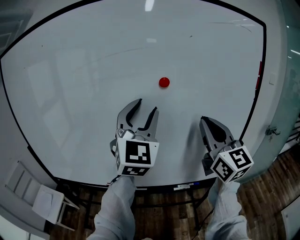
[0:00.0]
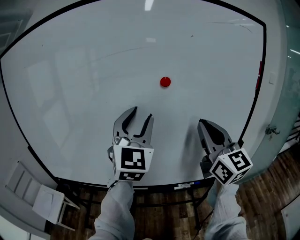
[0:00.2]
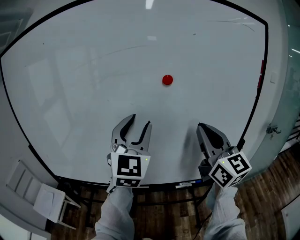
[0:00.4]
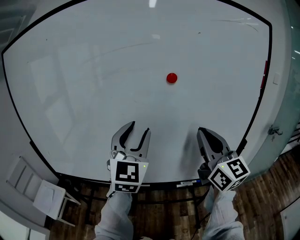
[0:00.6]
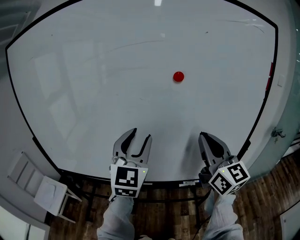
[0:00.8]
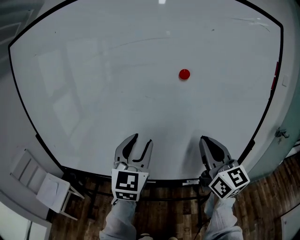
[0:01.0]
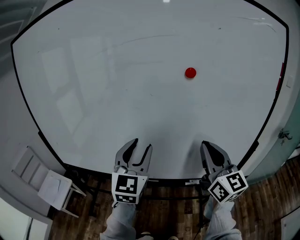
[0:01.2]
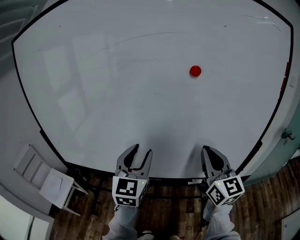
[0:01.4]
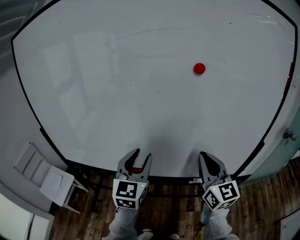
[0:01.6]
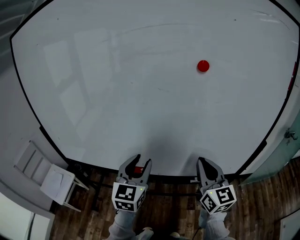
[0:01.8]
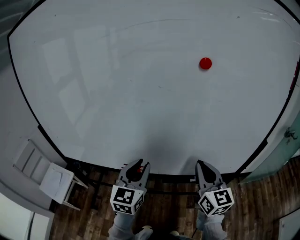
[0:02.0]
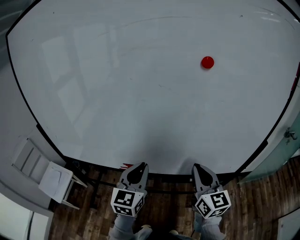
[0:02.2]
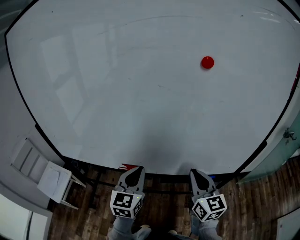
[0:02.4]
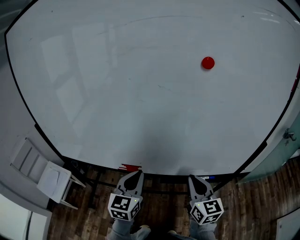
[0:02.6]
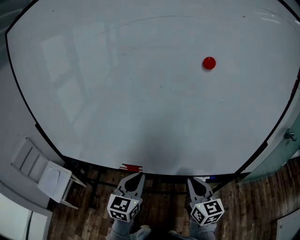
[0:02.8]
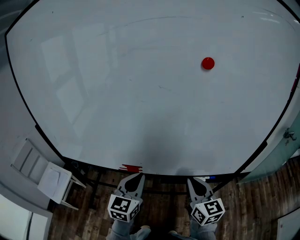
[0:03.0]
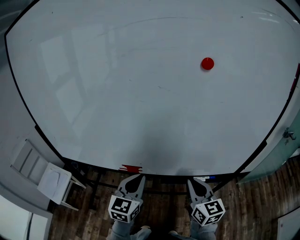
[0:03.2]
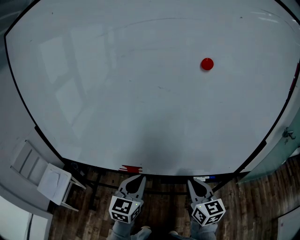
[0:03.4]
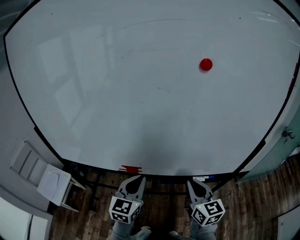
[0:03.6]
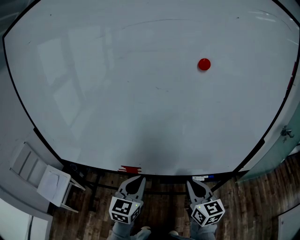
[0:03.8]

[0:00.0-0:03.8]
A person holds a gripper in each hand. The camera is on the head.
0:00.0 to 0:01.2: The left gripper goes about 20 cm downward and to the left, and rotates some 20 degrees, while the right gripper shifts about 10 cm downward.
0:01.2 to 0:02.6: The two grippers go some 20 cm downward. The right gripper swivels roughly 20 degrees, while the left gripper turns by some 20 degrees, and closes its fingers.
0:02.6 to 0:03.8: The grippers stay close to where they were, moving slightly.

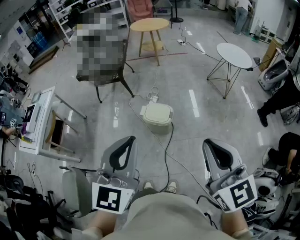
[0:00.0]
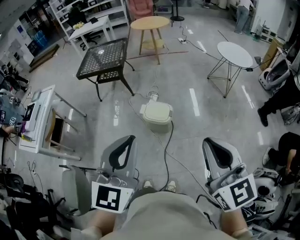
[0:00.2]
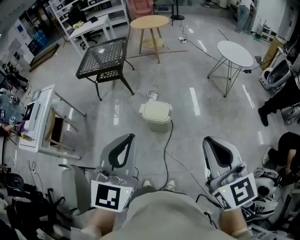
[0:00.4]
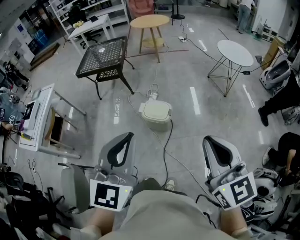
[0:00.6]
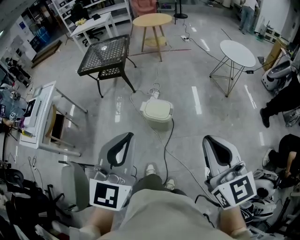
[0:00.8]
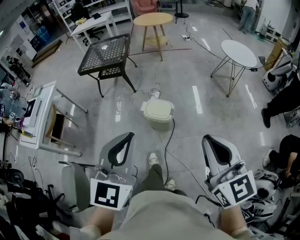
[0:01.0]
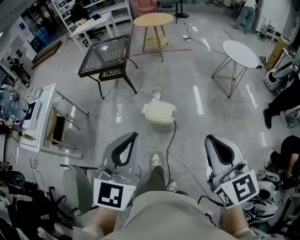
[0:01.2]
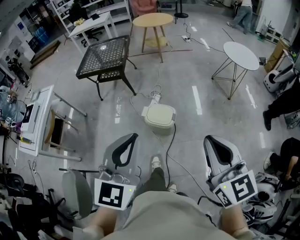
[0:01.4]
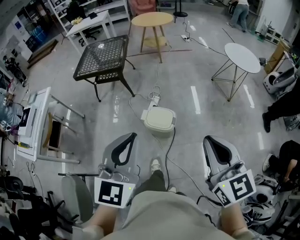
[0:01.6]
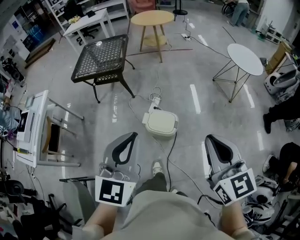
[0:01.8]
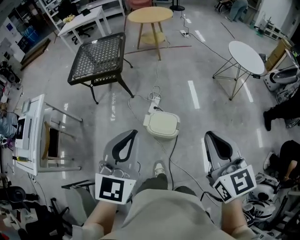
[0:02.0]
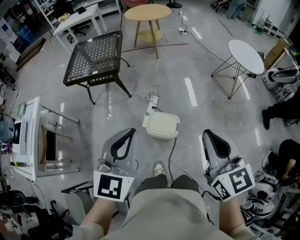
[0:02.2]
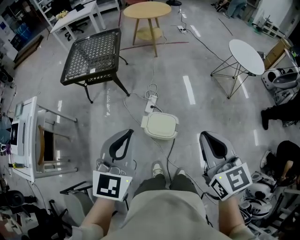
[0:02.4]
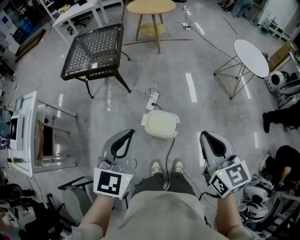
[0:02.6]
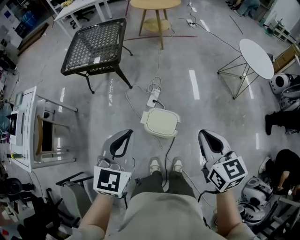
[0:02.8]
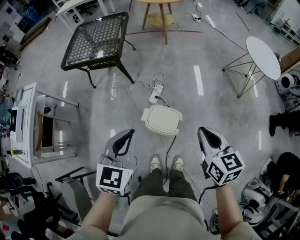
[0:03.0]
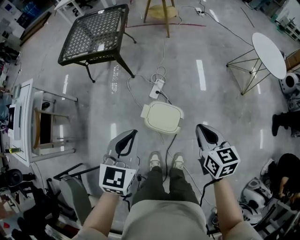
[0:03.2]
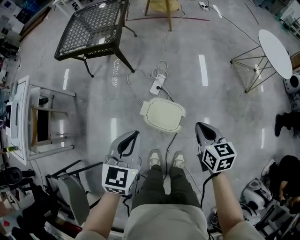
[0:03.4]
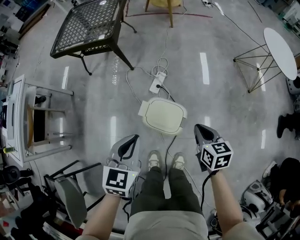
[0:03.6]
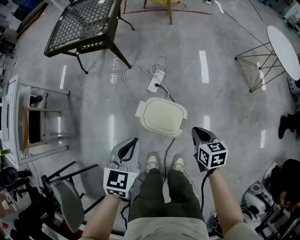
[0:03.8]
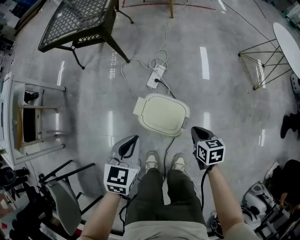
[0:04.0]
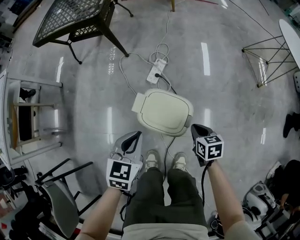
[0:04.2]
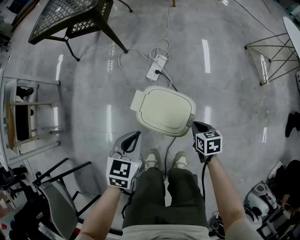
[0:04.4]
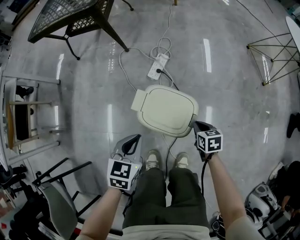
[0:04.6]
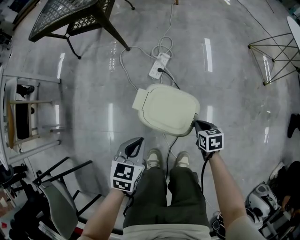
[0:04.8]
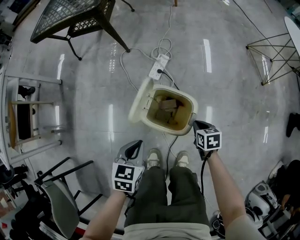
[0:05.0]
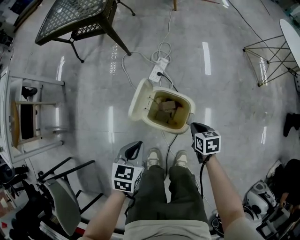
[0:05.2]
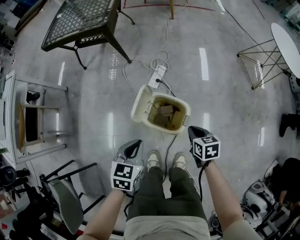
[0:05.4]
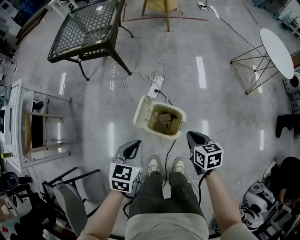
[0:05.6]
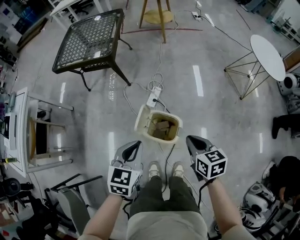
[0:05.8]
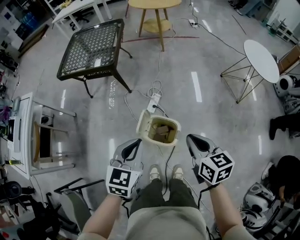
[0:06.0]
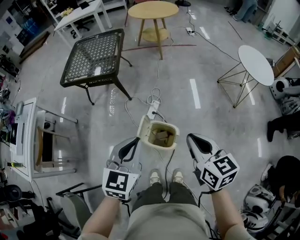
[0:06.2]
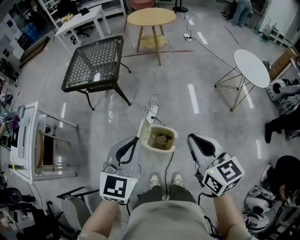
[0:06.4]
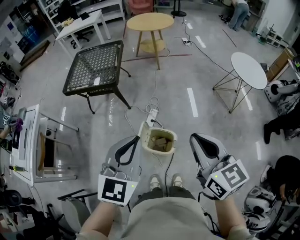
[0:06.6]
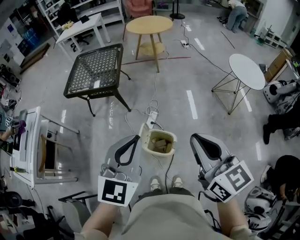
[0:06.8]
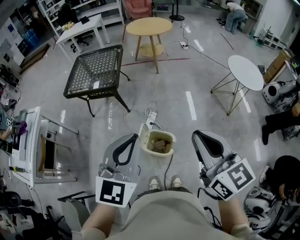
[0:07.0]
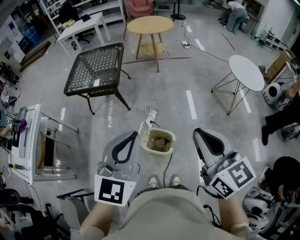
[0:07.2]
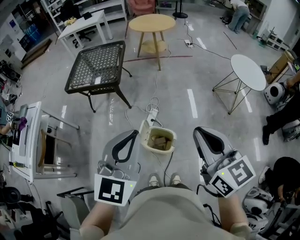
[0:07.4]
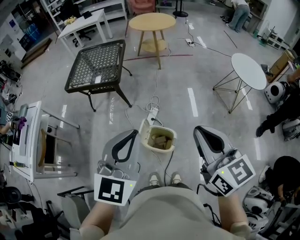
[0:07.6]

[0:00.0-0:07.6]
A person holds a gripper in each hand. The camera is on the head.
0:00.0 to 0:01.6: The two grippers go roughly 15 cm forward.
0:01.6 to 0:03.0: The grippers both shift forward and downward by about 30 cm. The right gripper changes its angle by approximately 20 degrees.
0:03.0 to 0:04.6: Both grippers move downward, approximately 50 cm. The right gripper tips its fingers downward by about 30 degrees, while the left gripper swivels roughly 20 degrees.
0:04.6 to 0:06.0: The grippers both shift upward by approximately 50 cm. The right gripper swivels about 30 degrees.
0:06.0 to 0:07.6: The two grippers go approximately 25 cm upward. The right gripper turns by about 30 degrees. The left gripper swivels approximately 20 degrees.

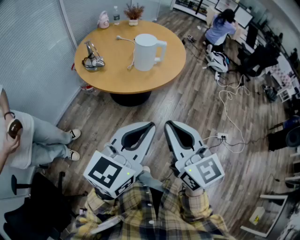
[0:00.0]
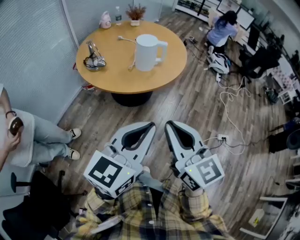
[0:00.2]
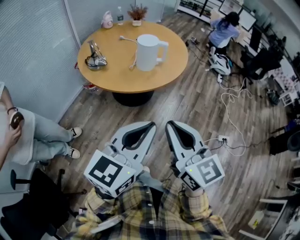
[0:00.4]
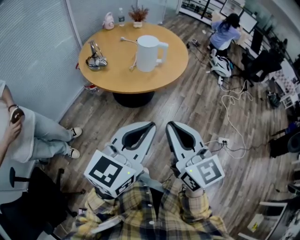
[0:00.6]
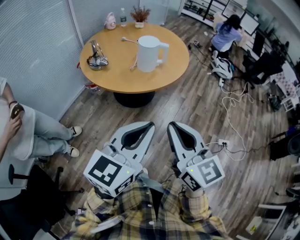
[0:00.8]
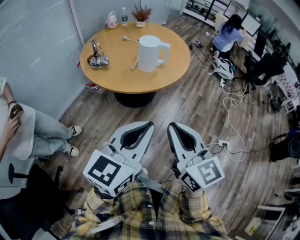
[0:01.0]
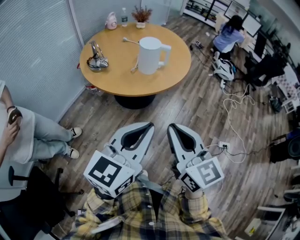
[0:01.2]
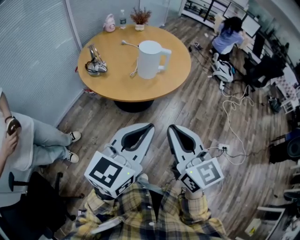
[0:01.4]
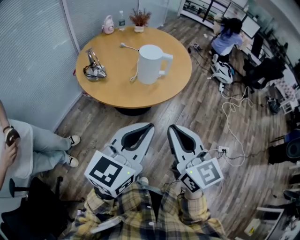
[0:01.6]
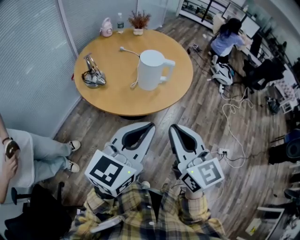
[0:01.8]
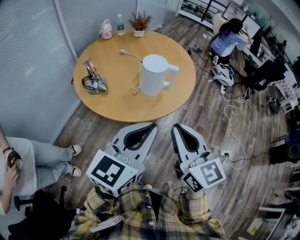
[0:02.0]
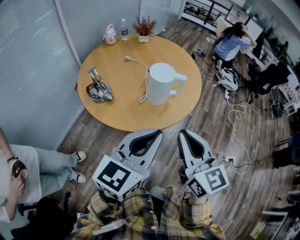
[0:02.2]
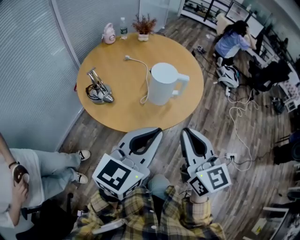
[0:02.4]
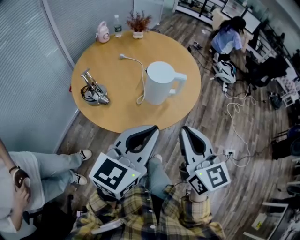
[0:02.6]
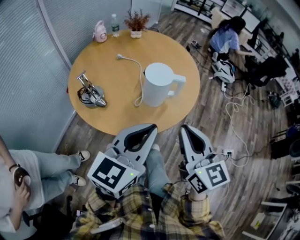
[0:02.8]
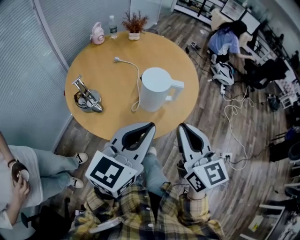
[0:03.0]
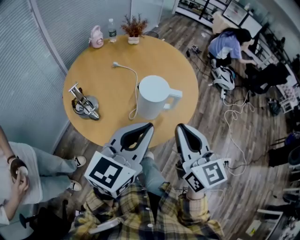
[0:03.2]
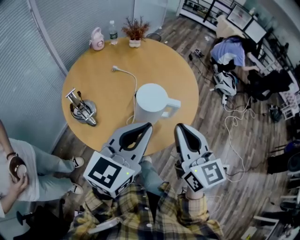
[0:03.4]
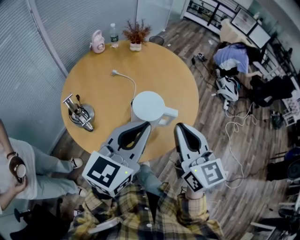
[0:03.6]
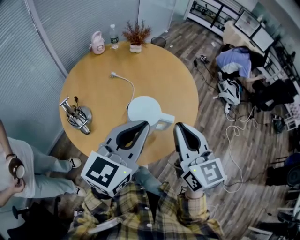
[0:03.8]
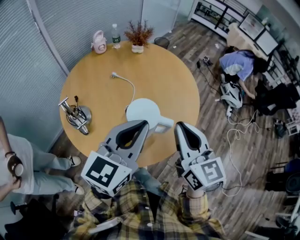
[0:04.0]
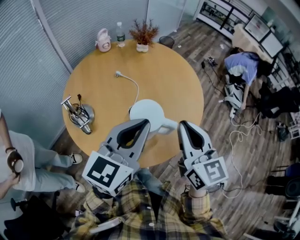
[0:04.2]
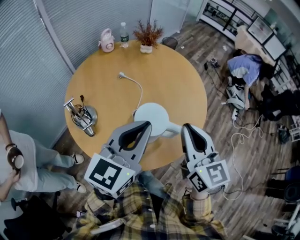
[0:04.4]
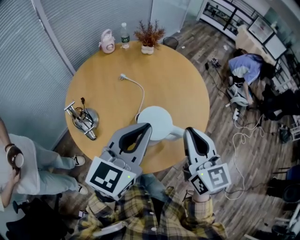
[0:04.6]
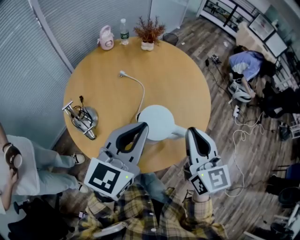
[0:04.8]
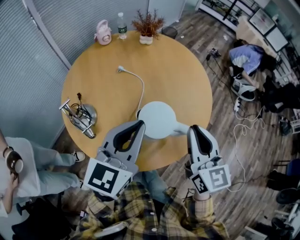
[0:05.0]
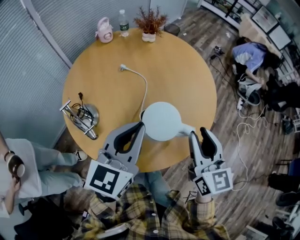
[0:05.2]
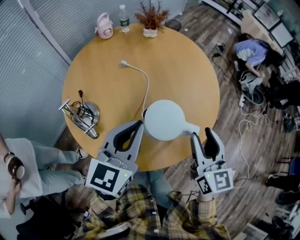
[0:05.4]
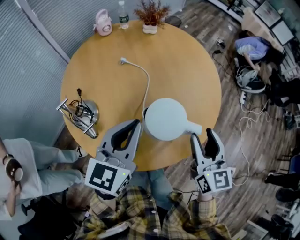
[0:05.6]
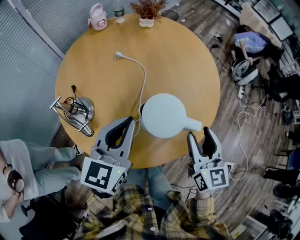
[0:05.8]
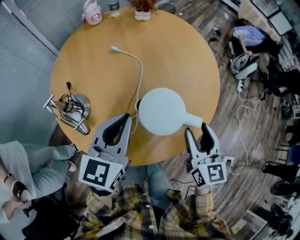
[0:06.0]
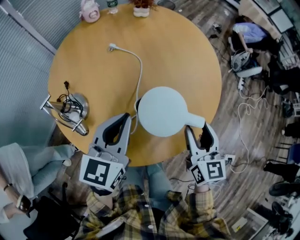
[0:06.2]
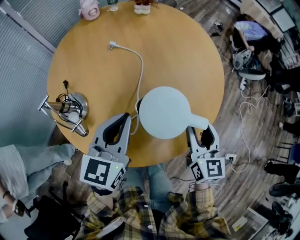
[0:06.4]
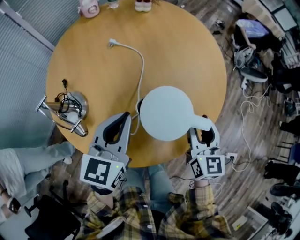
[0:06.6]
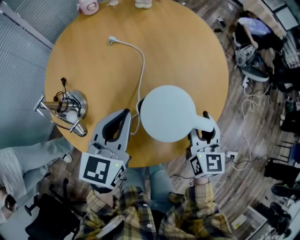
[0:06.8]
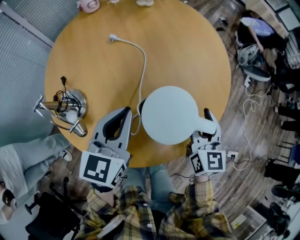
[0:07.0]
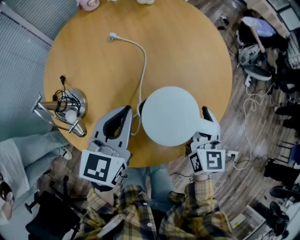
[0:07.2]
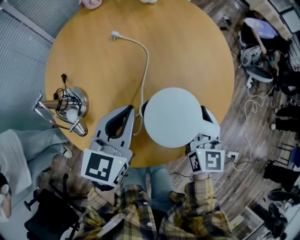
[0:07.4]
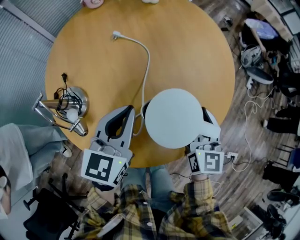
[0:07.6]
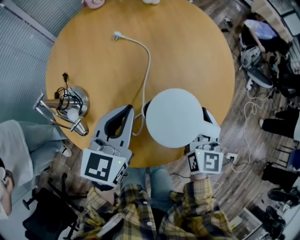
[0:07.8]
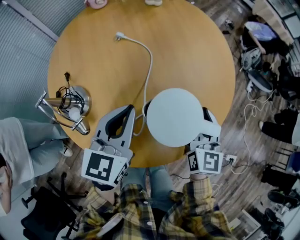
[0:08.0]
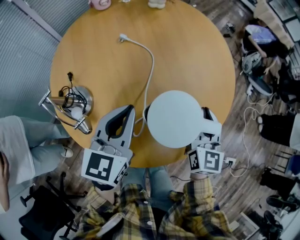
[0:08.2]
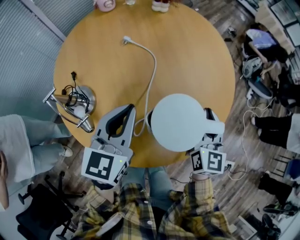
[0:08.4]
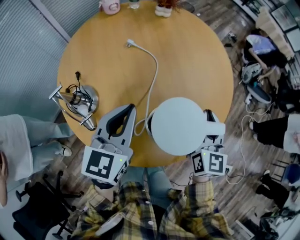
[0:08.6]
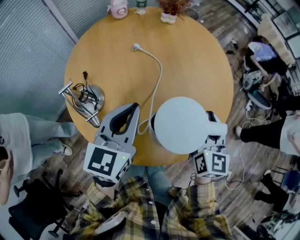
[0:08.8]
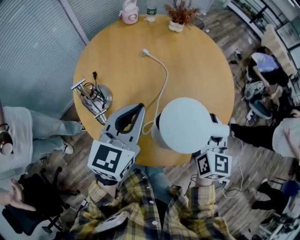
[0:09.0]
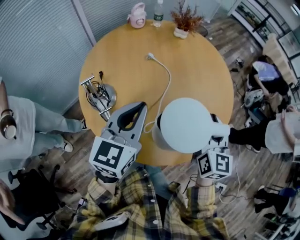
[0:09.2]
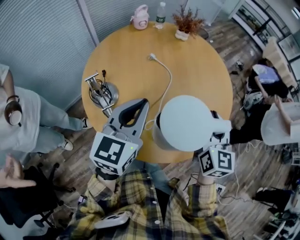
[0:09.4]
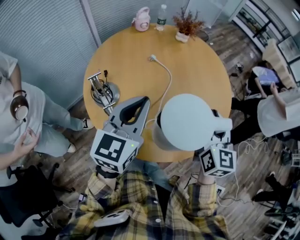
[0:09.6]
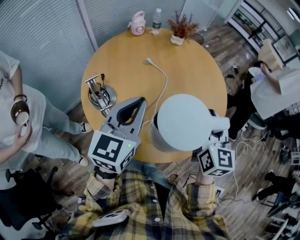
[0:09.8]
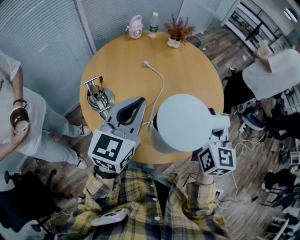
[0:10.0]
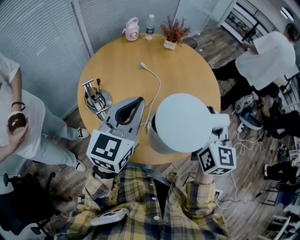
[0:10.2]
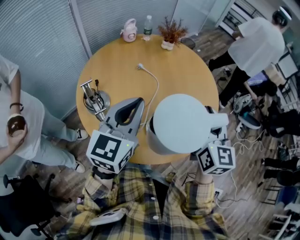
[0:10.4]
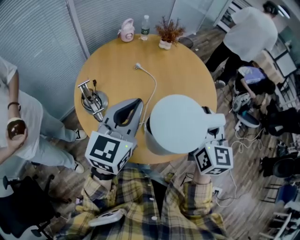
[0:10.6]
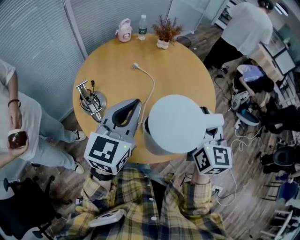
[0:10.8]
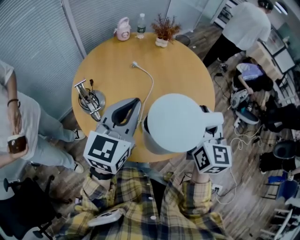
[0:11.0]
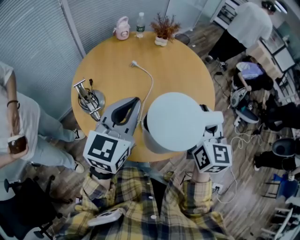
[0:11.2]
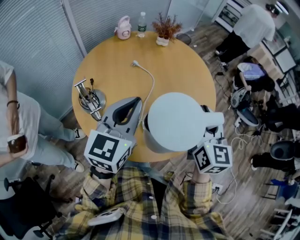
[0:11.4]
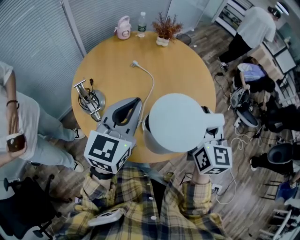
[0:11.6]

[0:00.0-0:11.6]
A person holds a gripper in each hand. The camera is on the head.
0:00.0 to 0:01.4: The left gripper ends up roughly 5 cm from where it was; the right gripper heads forward, covering roughly 5 cm.
0:01.4 to 0:02.8: The right gripper travels forward by roughly 20 cm. The left gripper moves forward and to the left, roughly 25 cm.
0:02.8 to 0:04.4: The two grippers go approximately 20 cm forward.
0:04.4 to 0:05.8: The right gripper shifts roughly 15 cm downward, and opens its fingers, while the left gripper moves downward and to the left, roughly 15 cm.
0:05.8 to 0:07.2: The right gripper travels downward and forward by some 10 cm, while the left gripper moves downward, about 10 cm.
0:07.2 to 0:08.8: The two grippers go about 10 cm upward. The right gripper closes its fingers.
0:08.8 to 0:10.2: The right gripper goes about 15 cm upward, while the left gripper shifts approximately 10 cm upward and backward.
0:10.2 to 0:11.6: The grippers move only a little.
